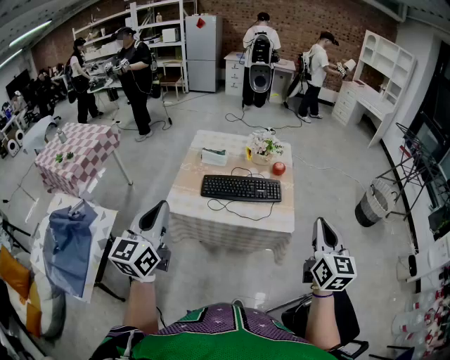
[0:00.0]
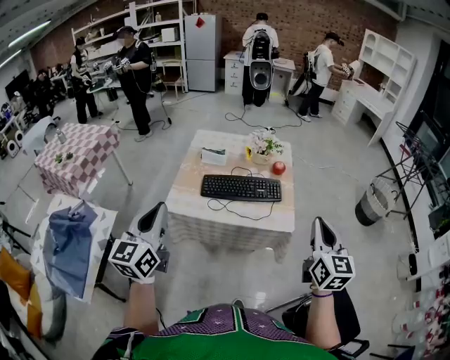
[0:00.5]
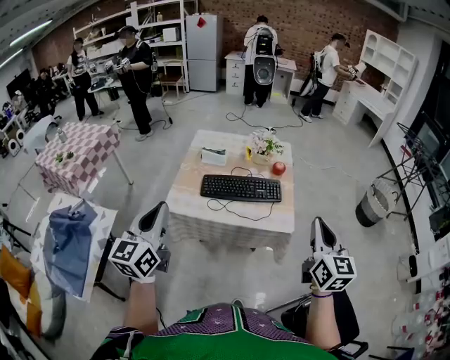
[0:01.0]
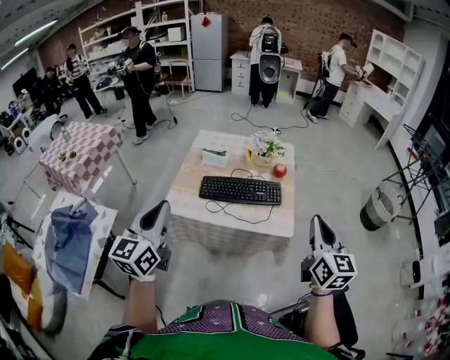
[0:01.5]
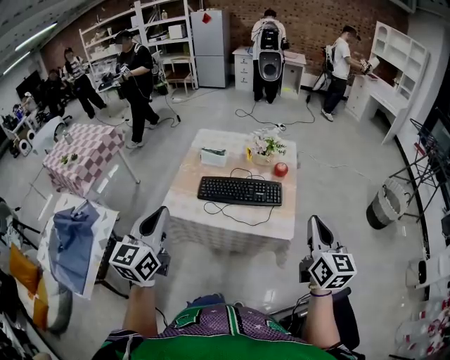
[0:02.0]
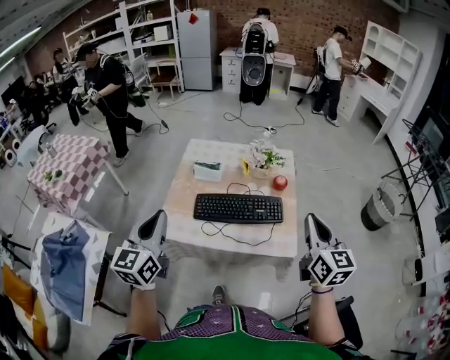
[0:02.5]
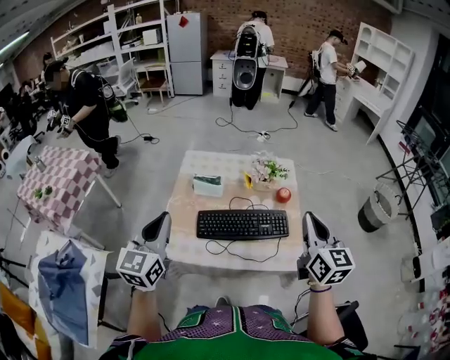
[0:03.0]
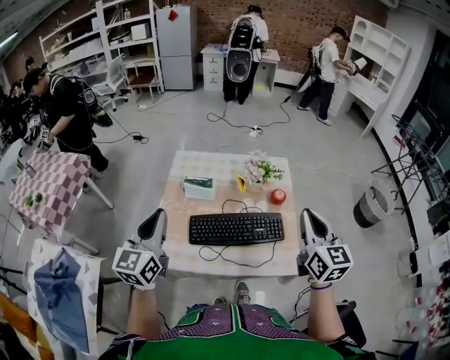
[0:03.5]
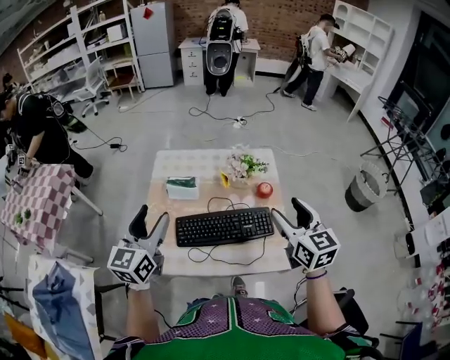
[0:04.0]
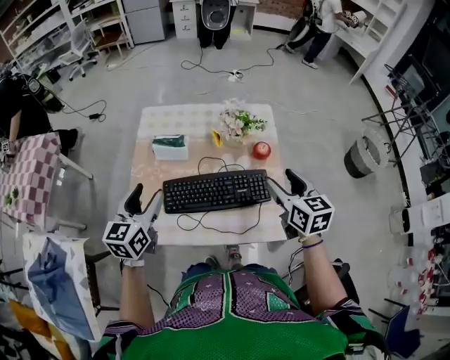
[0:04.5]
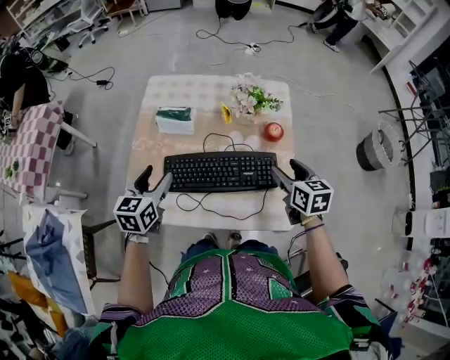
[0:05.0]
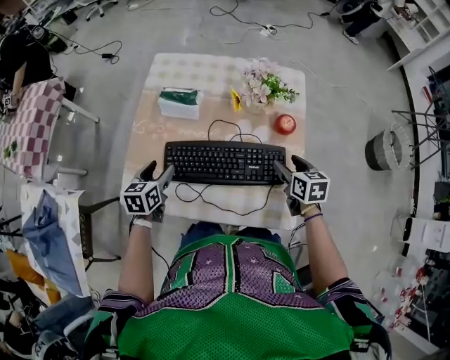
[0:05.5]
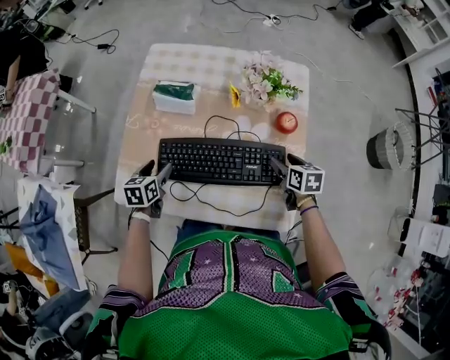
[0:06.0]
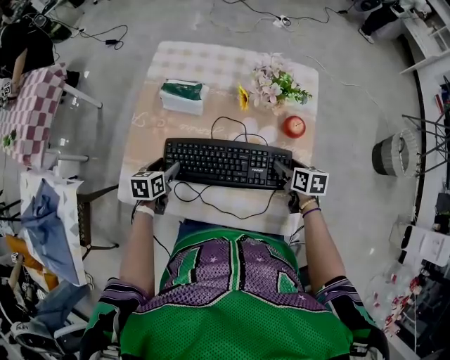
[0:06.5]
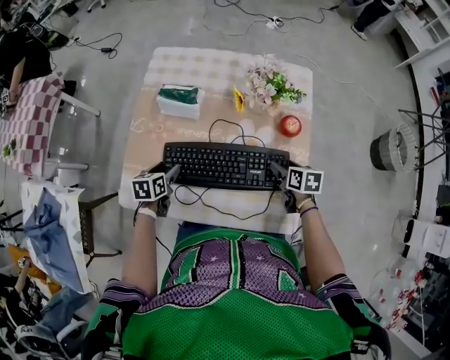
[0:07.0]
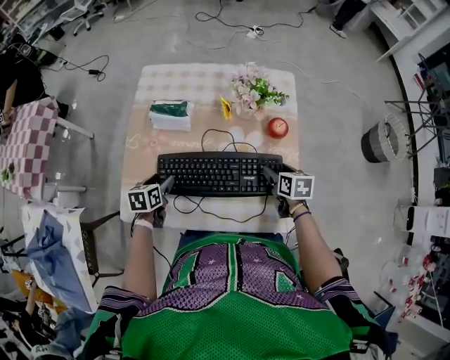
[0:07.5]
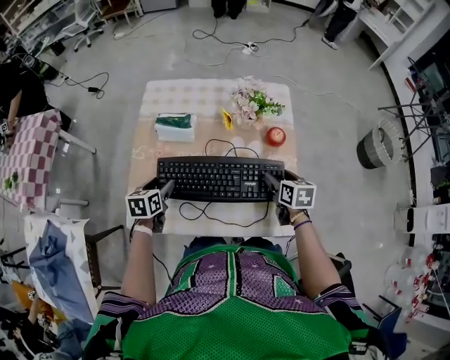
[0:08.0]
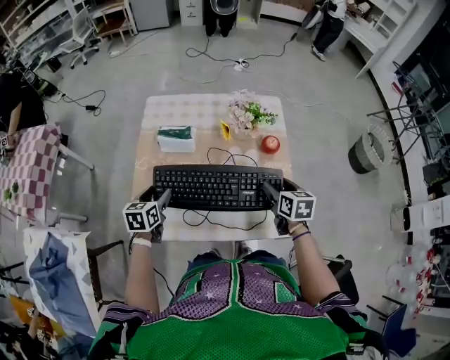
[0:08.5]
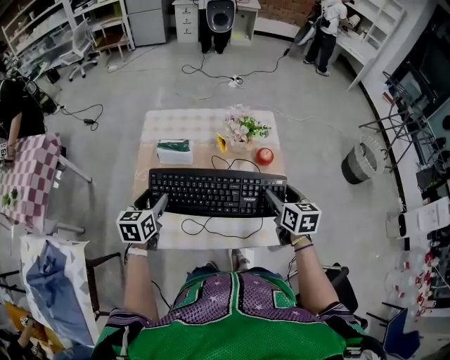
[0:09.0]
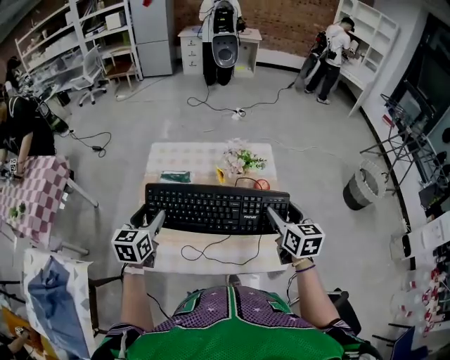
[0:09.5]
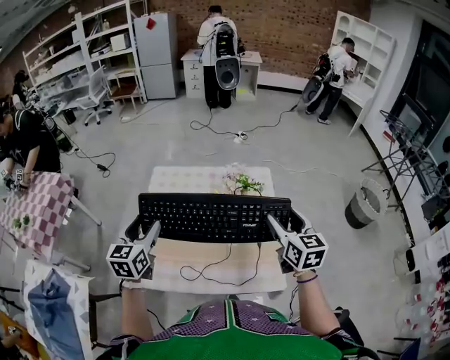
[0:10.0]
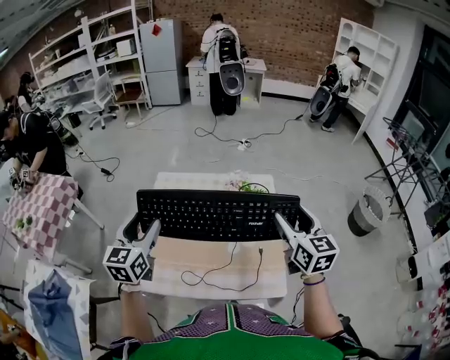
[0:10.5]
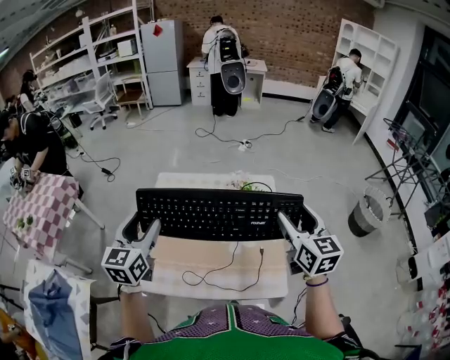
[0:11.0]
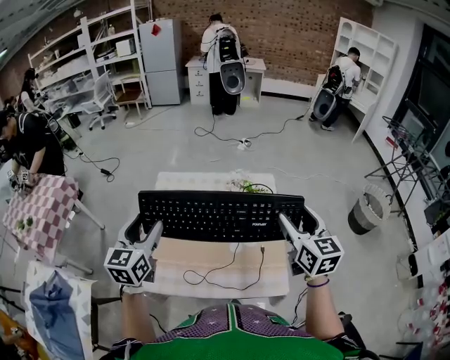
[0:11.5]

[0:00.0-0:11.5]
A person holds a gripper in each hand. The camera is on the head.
0.0 to 2.0 s: The right gripper shifts roughly 5 cm forward. Meanwhile the left gripper goes roughly 5 cm to the right.
2.0 to 4.0 s: The left gripper heads forward, covering about 30 cm, and opens up, while the right gripper travels forward and to the left by roughly 25 cm, and opens up.
4.0 to 6.0 s: The grippers both shift downward by some 35 cm. The right gripper tilts its fingers roughly 40 degrees downward; the left gripper angles its fingers downward, by about 40 degrees.
6.0 to 7.5 s: The grippers stay close to where they were, moving slightly.
7.5 to 9.5 s: Both grippers move upward, some 25 cm. The right gripper turns by about 30 degrees; the left gripper changes its angle by about 30 degrees.
9.5 to 11.5 s: The two grippers go approximately 10 cm upward.

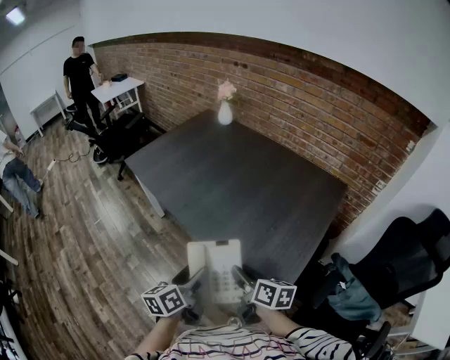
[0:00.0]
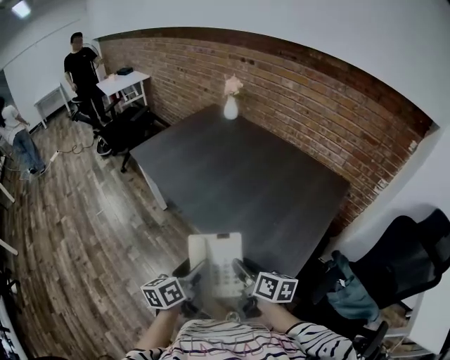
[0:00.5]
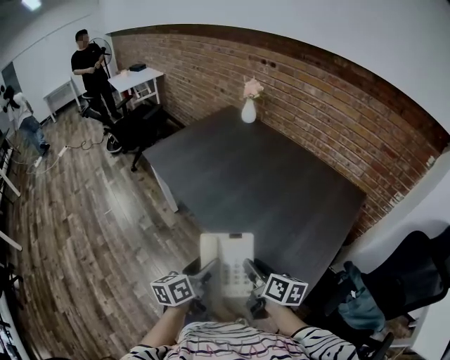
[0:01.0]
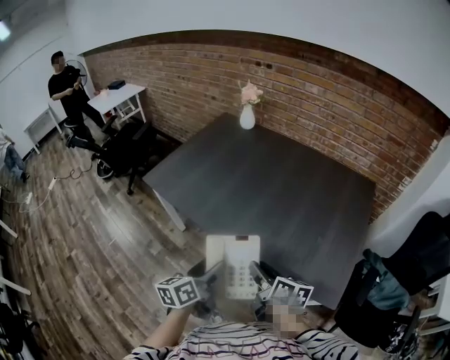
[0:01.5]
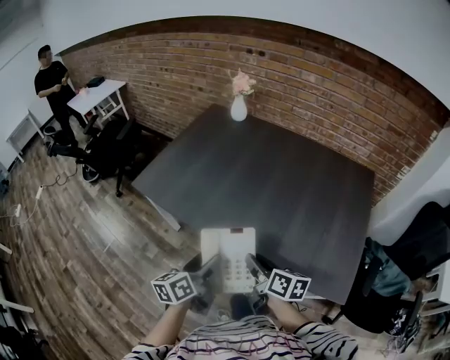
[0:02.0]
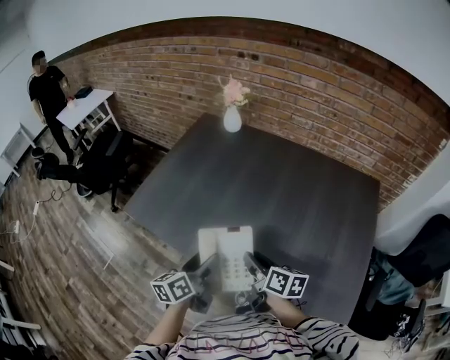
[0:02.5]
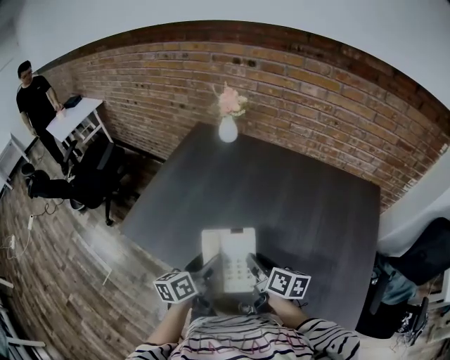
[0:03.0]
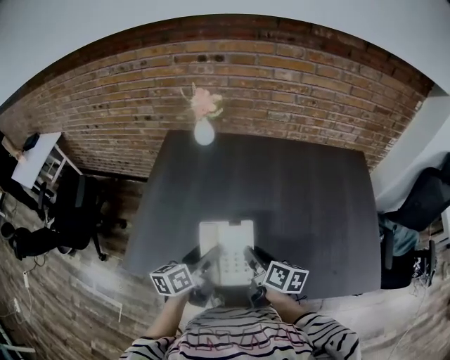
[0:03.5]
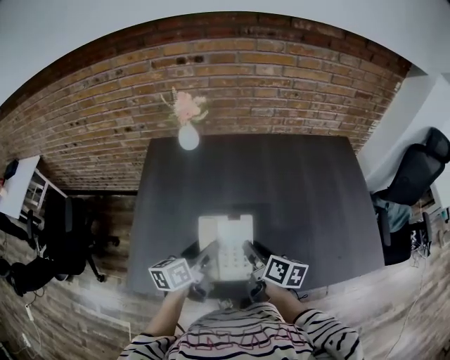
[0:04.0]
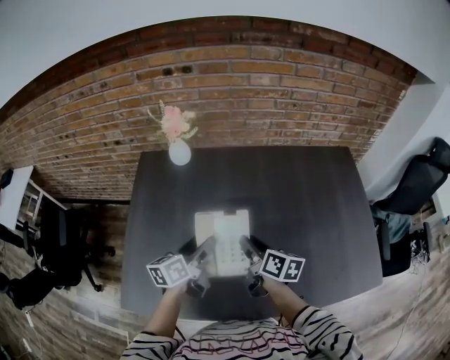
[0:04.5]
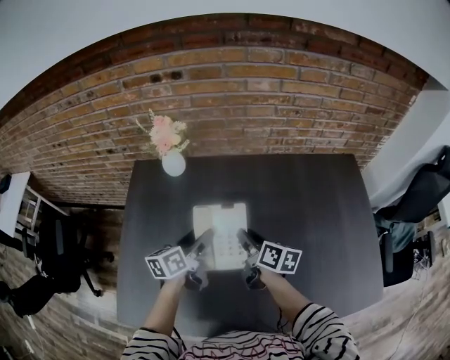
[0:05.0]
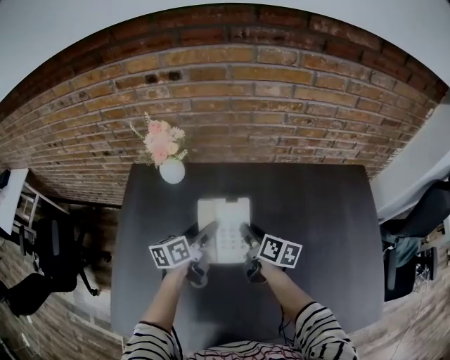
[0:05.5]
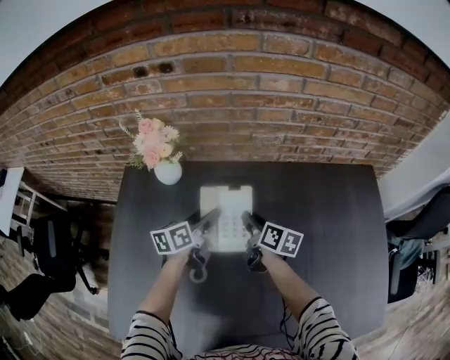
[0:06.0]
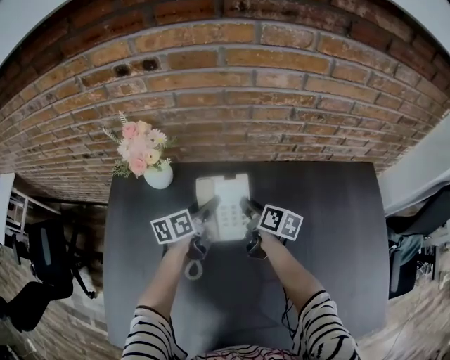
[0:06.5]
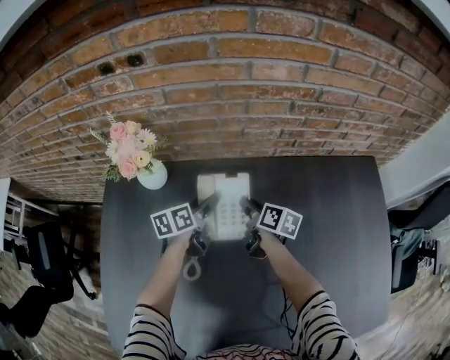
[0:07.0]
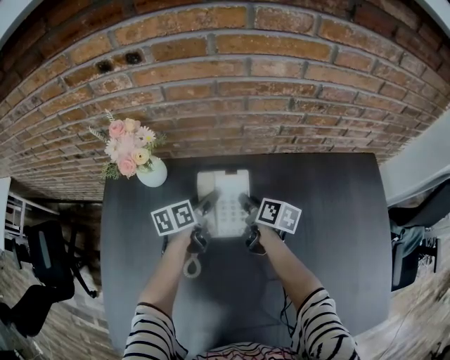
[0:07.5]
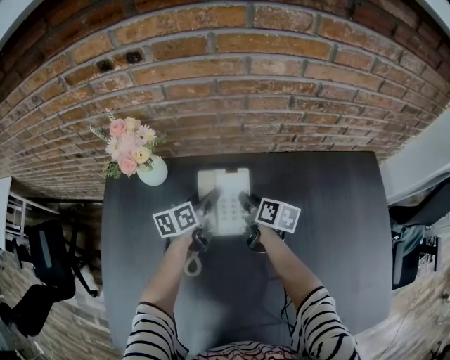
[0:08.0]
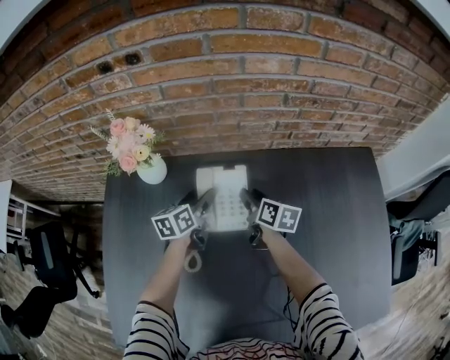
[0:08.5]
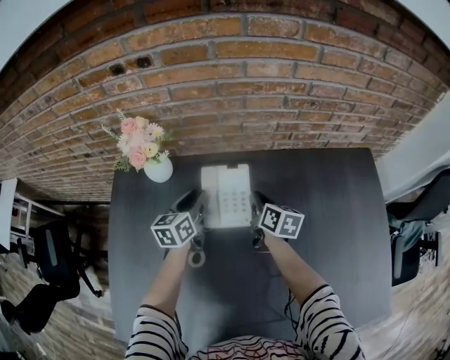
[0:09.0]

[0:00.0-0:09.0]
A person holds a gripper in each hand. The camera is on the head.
0.0 to 2.0 s: The left gripper is displaced forward and to the left by about 30 cm, while the right gripper moves to the left and forward, about 30 cm.
2.0 to 4.5 s: The pair of grippers is taken roughly 40 cm. The left gripper swivels approximately 30 degrees. The right gripper turns by approximately 30 degrees.
4.5 to 7.0 s: The grippers both shift forward by approximately 35 cm.
7.0 to 9.0 s: The left gripper heads upward, covering some 5 cm, rotates about 20 degrees, and closes. The right gripper ends up some 5 cm from where it was, and closes.

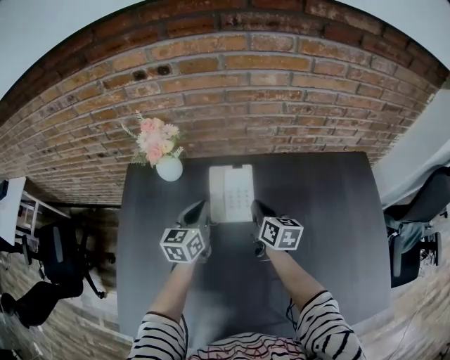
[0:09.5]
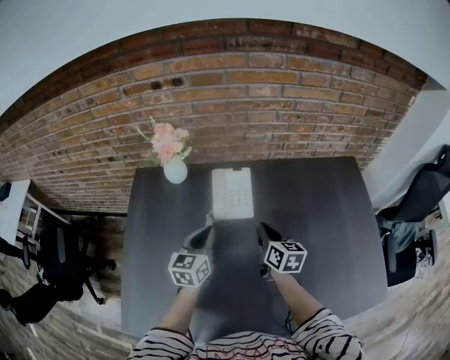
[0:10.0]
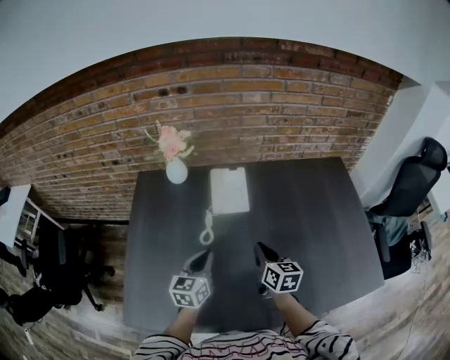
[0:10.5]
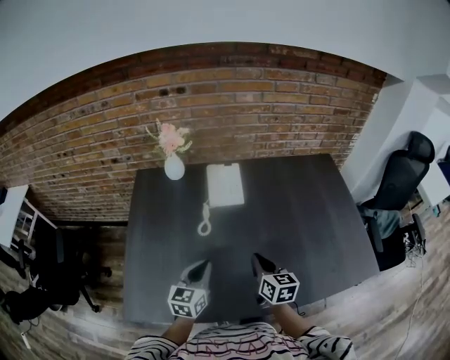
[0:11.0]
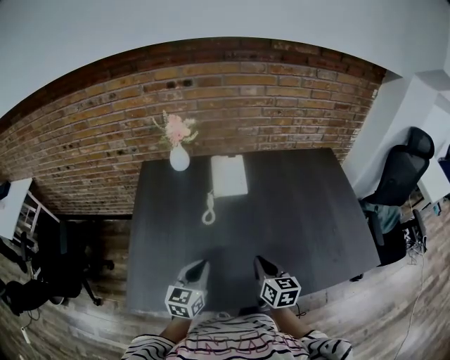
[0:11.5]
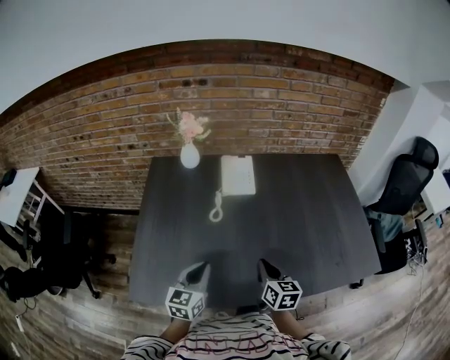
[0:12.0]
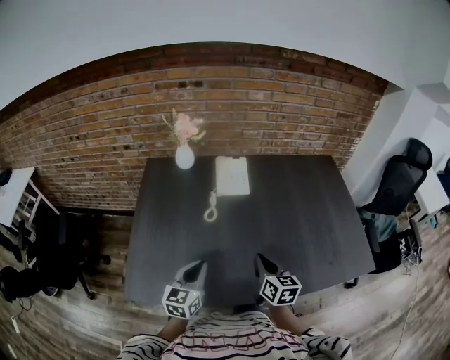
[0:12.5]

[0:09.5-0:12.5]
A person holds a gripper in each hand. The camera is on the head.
9.5 to 11.0 s: Both grippers move backward, approximately 35 cm.
11.0 to 12.5 s: The two grippers go approximately 10 cm backward.

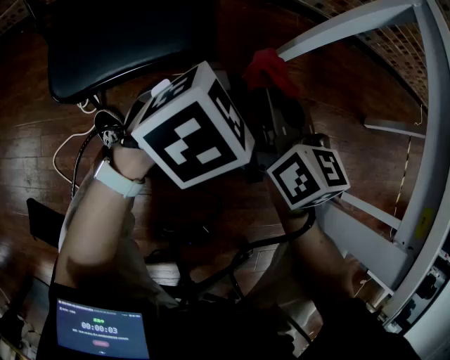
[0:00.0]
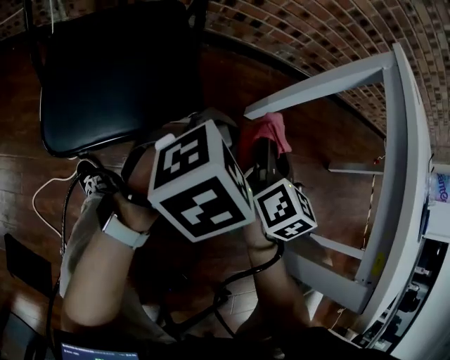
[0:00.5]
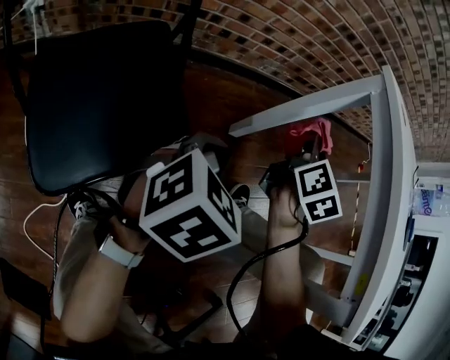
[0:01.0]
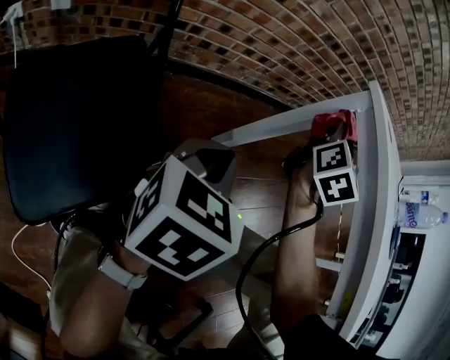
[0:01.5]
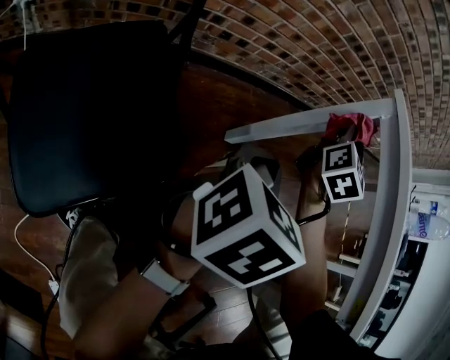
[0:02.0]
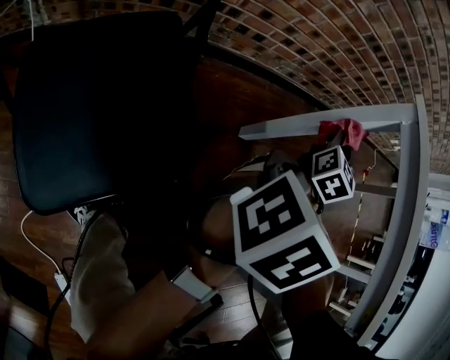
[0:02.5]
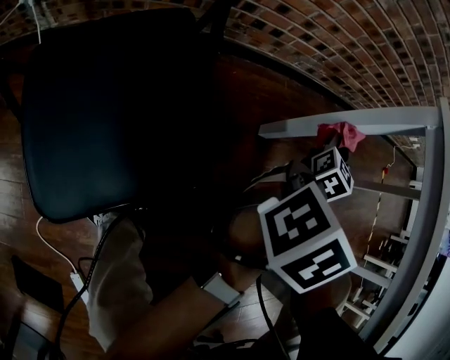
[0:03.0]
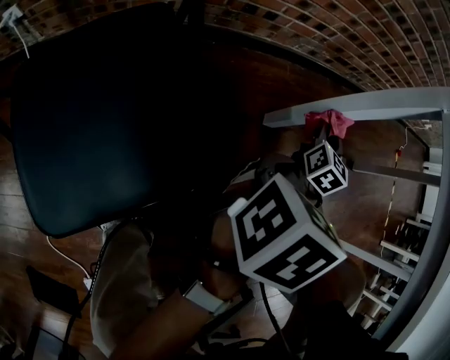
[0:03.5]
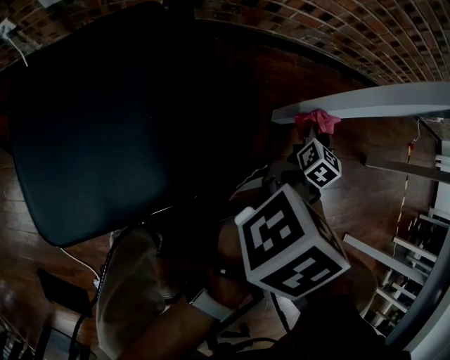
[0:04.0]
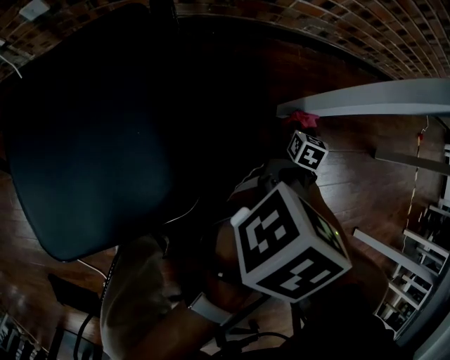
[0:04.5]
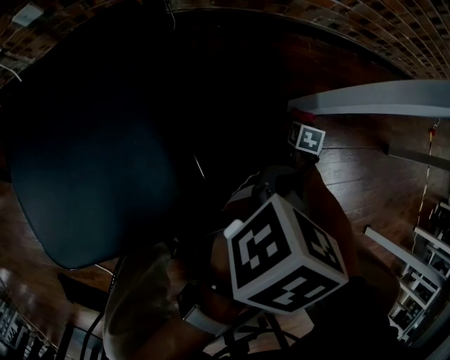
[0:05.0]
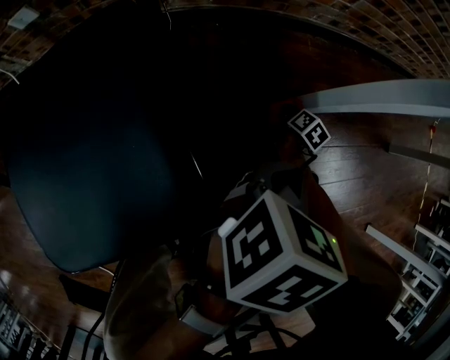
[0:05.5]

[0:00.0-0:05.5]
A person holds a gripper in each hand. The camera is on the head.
0.0 to 2.0 s: The left gripper moves approximately 15 cm, and rotates about 20 degrees. The right gripper moves approximately 35 cm, and turns by about 60 degrees.
2.0 to 3.5 s: The left gripper moves downward, some 10 cm; the right gripper goes approximately 25 cm downward, and changes its angle by about 20 degrees.
3.5 to 5.5 s: The right gripper shifts some 30 cm downward, and tilts its fingers roughly 30 degrees downward. The left gripper travels downward by some 10 cm.
